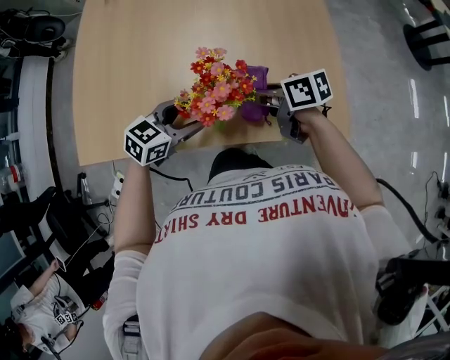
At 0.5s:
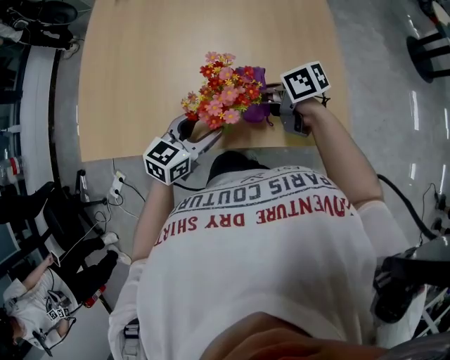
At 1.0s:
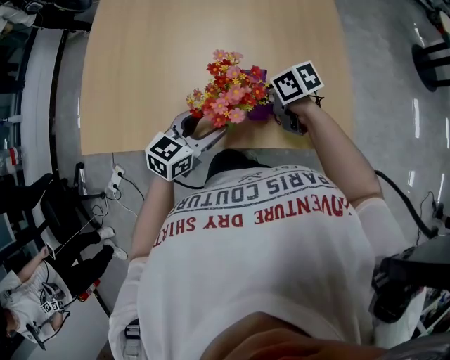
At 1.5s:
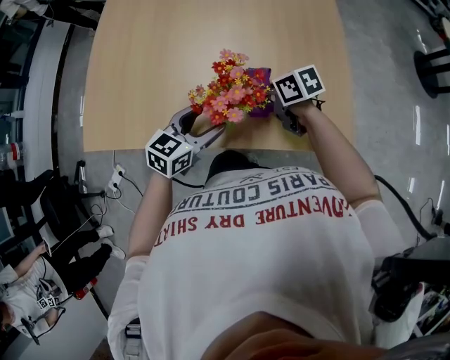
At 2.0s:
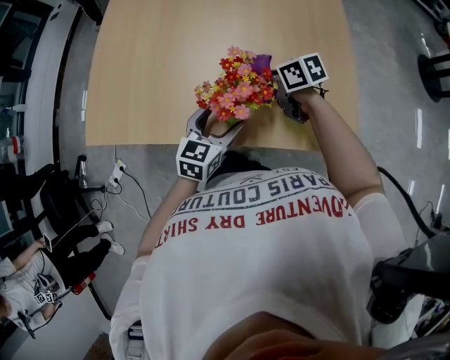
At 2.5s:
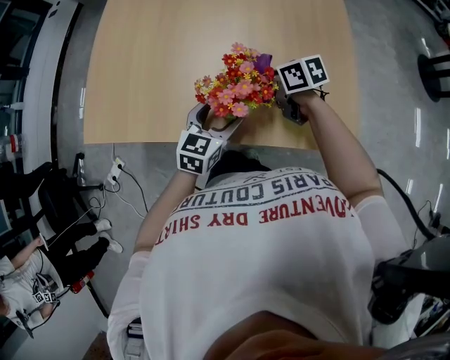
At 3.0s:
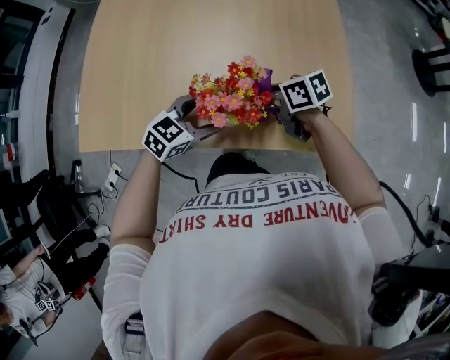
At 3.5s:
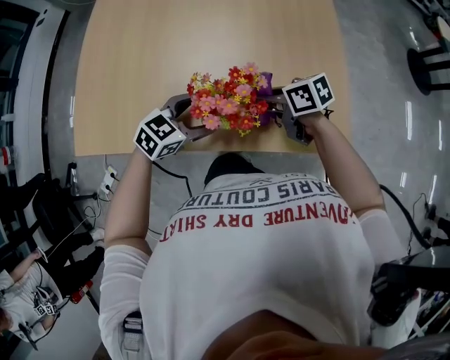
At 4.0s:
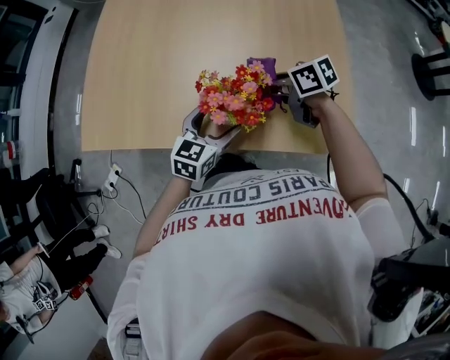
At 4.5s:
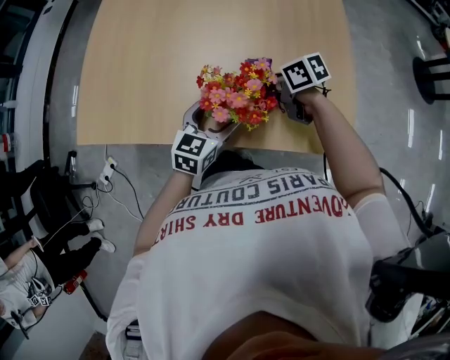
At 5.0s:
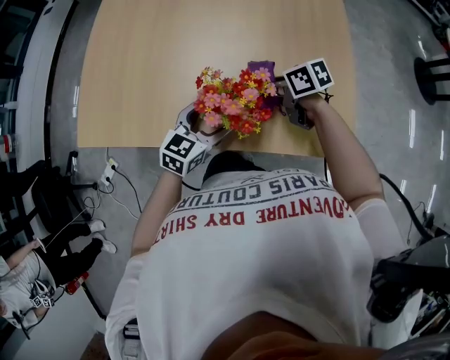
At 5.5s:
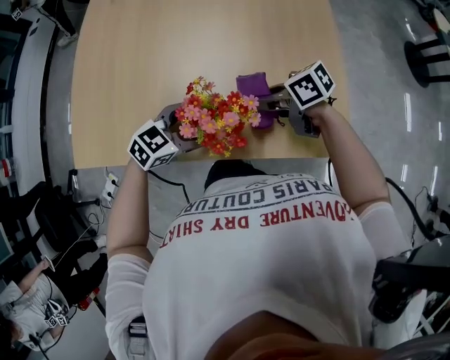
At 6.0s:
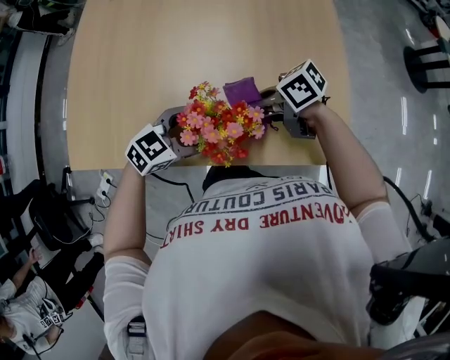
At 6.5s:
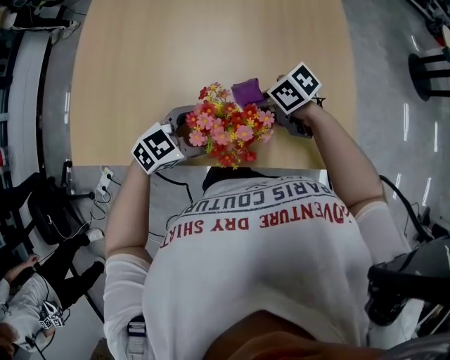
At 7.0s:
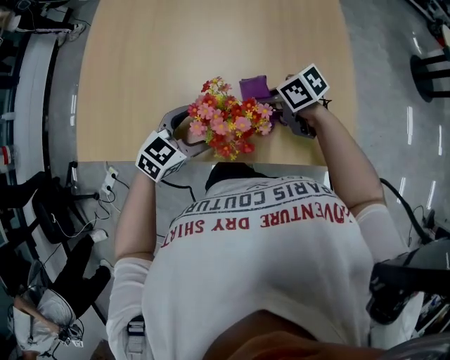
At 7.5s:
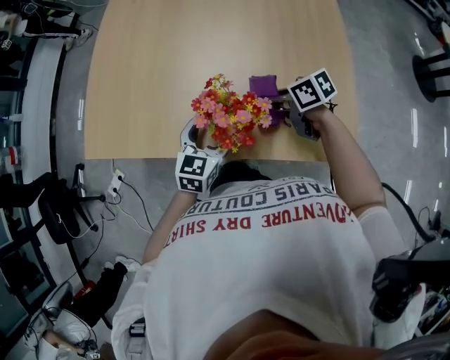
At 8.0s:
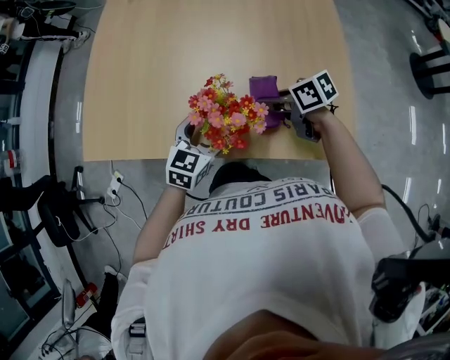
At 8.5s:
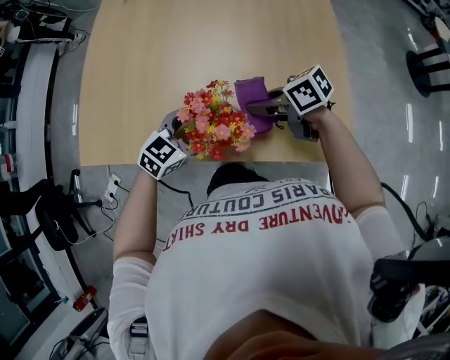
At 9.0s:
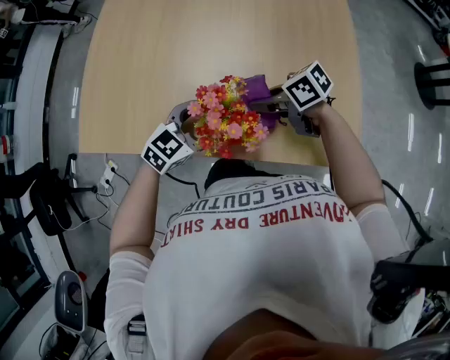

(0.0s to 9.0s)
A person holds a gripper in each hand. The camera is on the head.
0.0s - 2.0s: The right gripper changes place by some 5 cm; the left gripper swivels approximately 30 degrees.
4.5s - 7.0s: The left gripper ends up about 5 cm from where it was, and turns by some 30 degrees.

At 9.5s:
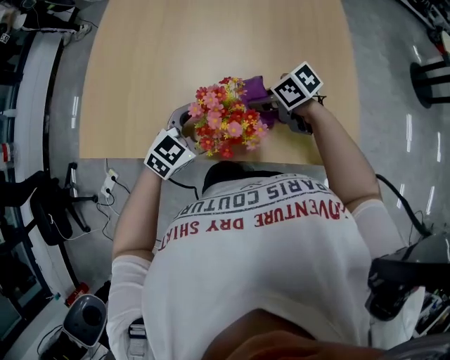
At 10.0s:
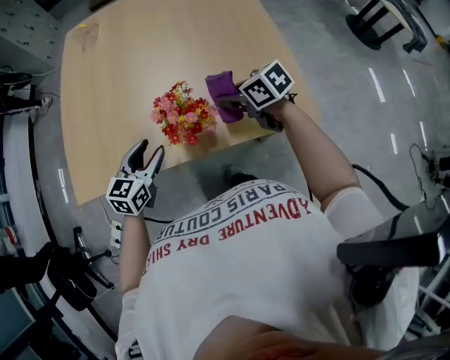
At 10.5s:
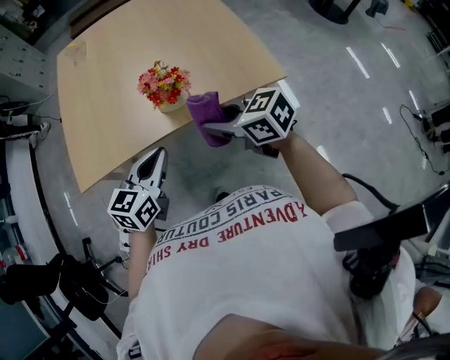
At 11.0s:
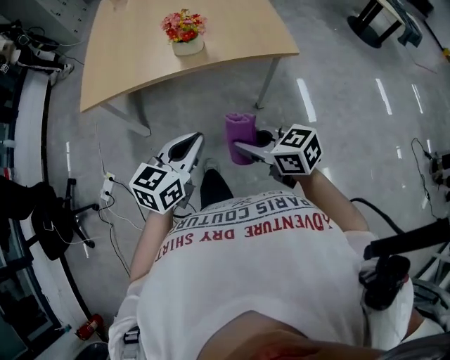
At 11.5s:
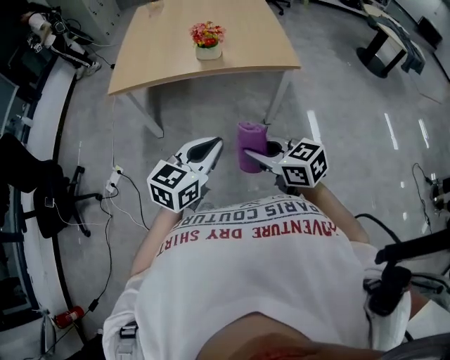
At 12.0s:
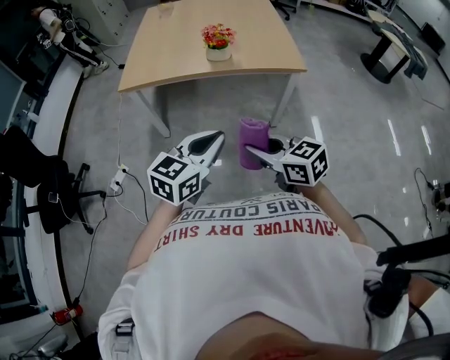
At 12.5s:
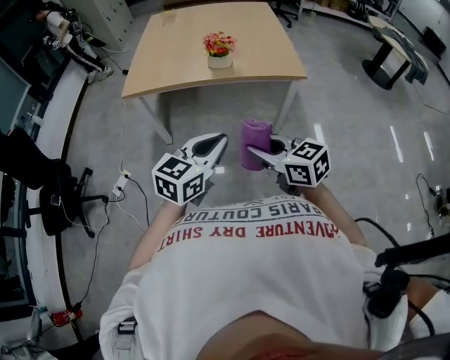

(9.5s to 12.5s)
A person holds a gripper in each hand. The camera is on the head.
9.5s - 11.0s: Both grippers are carried about 70 cm. The left gripper turns by some 20 degrees, and closes its fingers; the right gripper swivels approximately 40 degrees.
11.0s - 12.5s: The left gripper travels backward and upward by roughly 20 cm, while the right gripper goes approximately 20 cm backward, upward and to the left.

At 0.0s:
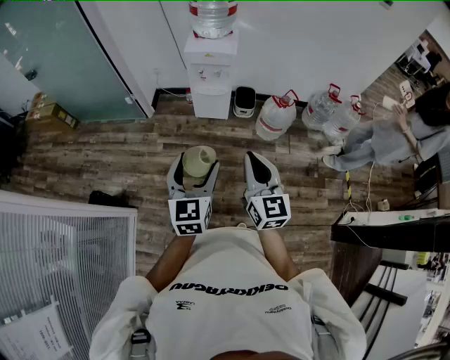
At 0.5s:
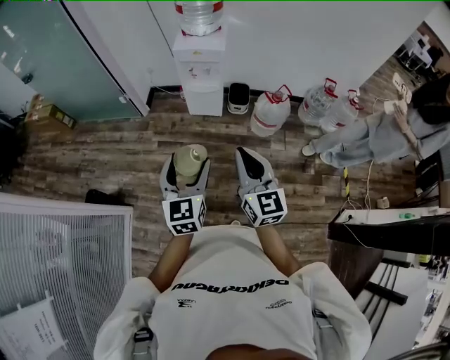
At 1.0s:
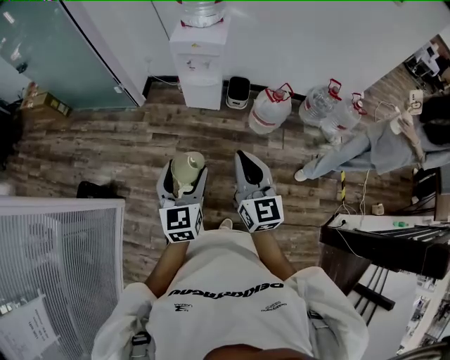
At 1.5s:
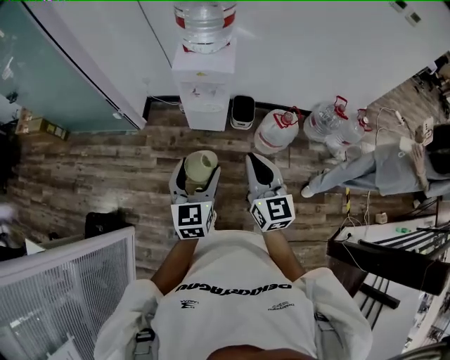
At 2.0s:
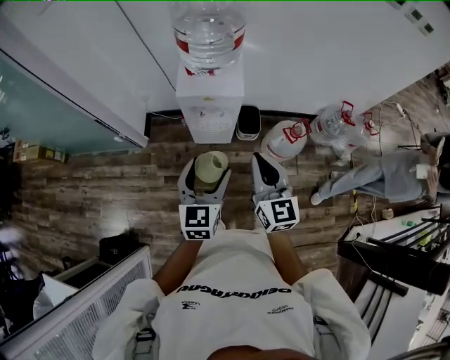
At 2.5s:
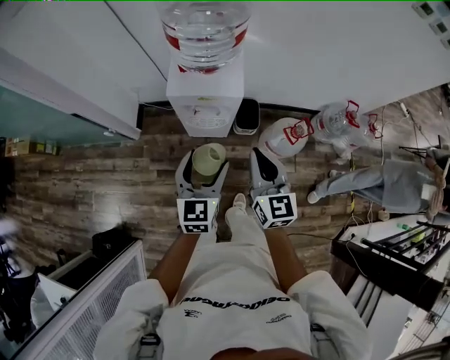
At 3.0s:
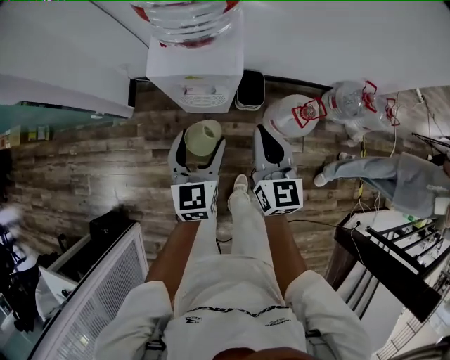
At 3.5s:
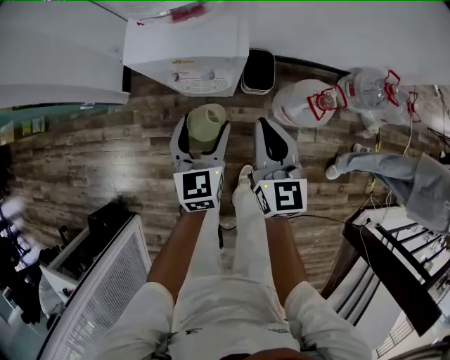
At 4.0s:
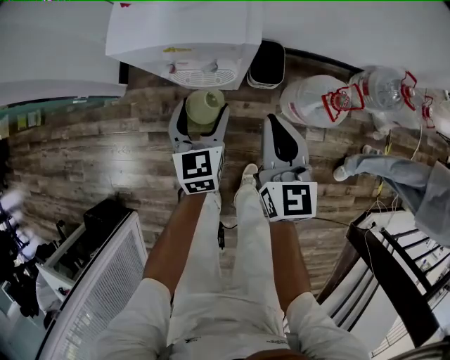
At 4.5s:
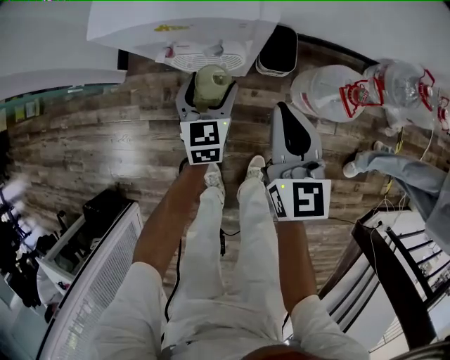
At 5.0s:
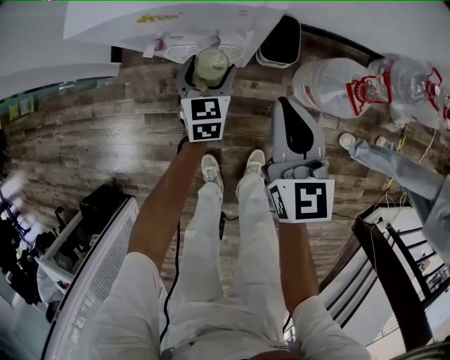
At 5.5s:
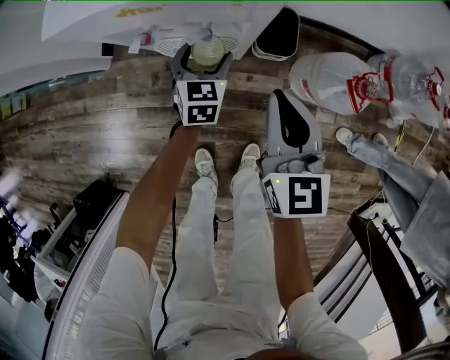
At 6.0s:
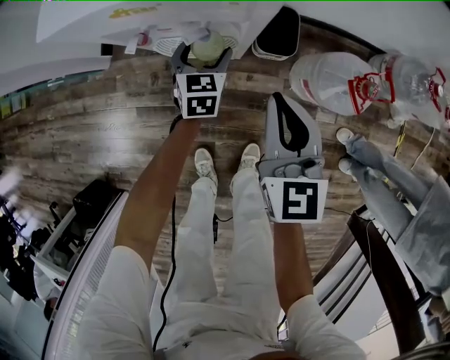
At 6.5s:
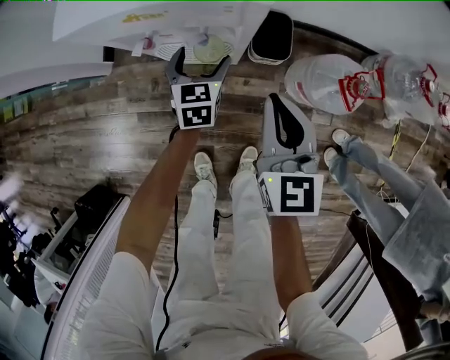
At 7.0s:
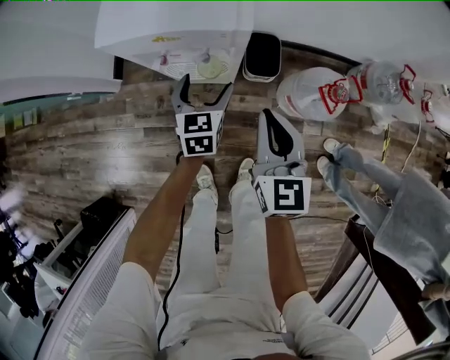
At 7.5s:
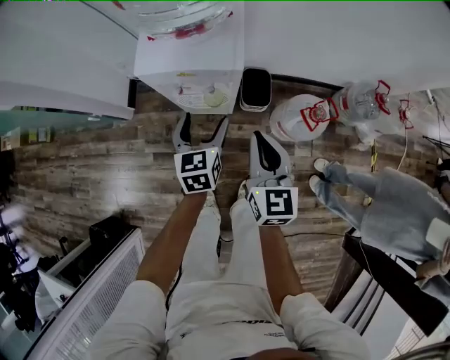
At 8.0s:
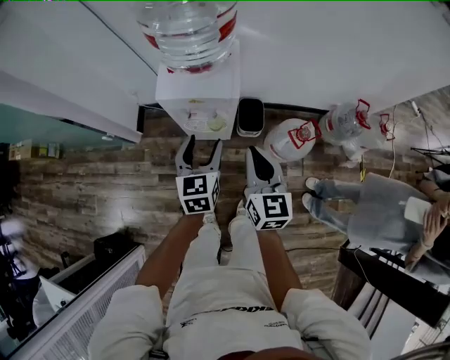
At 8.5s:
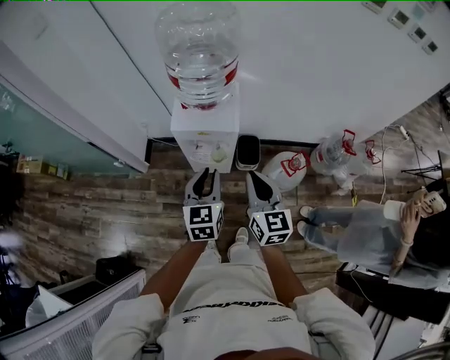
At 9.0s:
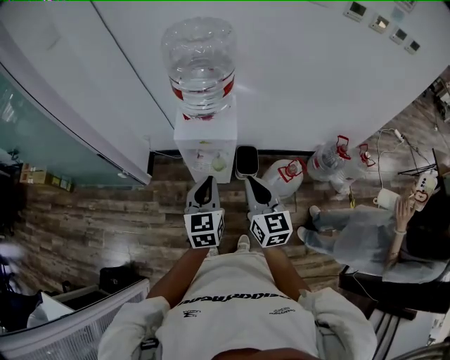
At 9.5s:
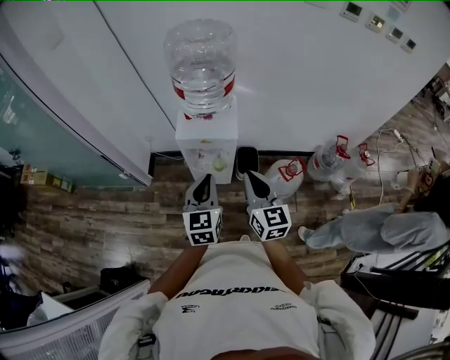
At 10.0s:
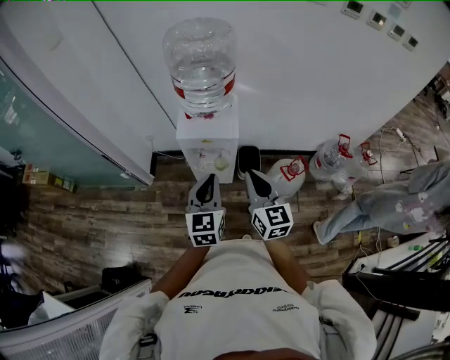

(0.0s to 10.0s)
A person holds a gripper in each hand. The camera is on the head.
0.0s - 2.0s: The pair of grippers is taken forward, roughly 40 cm.
2.0s - 4.0s: The two grippers go some 40 cm downward and forward.
4.0s - 6.0s: The right gripper goes about 10 cm downward; the left gripper is displaced downward and forward by about 25 cm.
6.0s - 8.0s: Both grippers move upward, approximately 40 cm.
8.0s - 10.0s: Both grippers move upward and backward, some 20 cm. The left gripper closes its fingers.

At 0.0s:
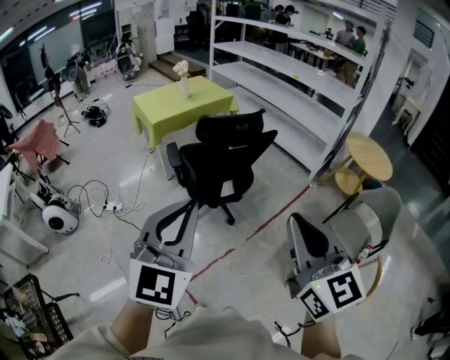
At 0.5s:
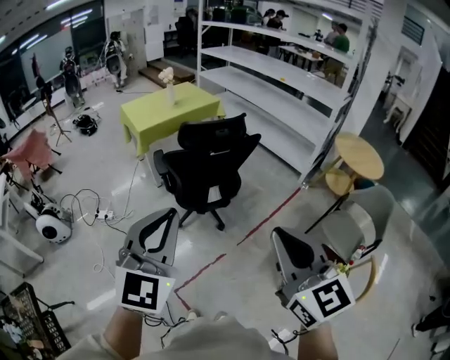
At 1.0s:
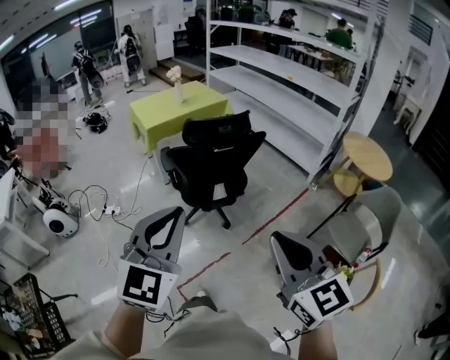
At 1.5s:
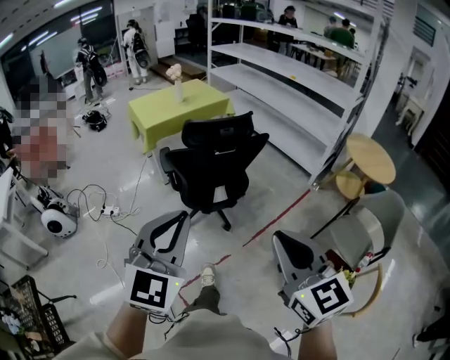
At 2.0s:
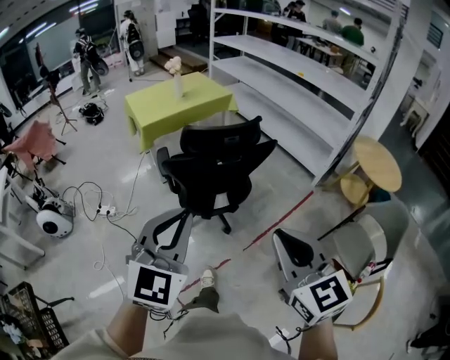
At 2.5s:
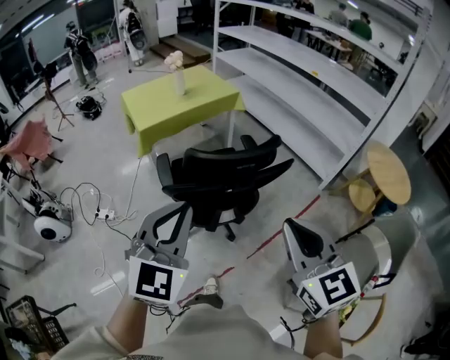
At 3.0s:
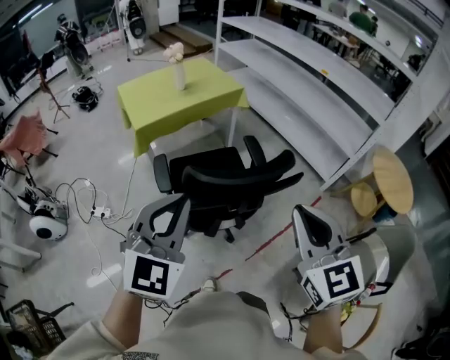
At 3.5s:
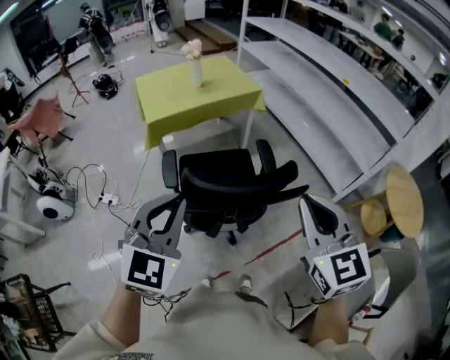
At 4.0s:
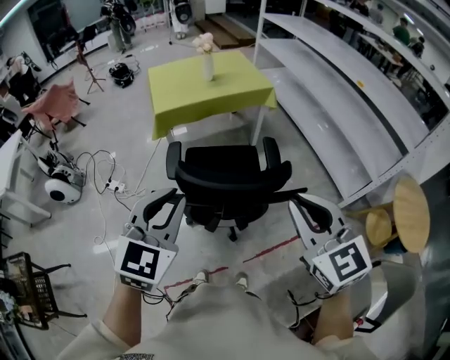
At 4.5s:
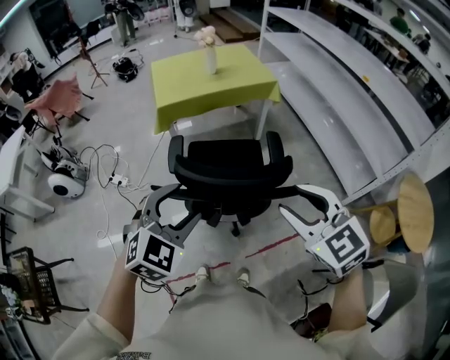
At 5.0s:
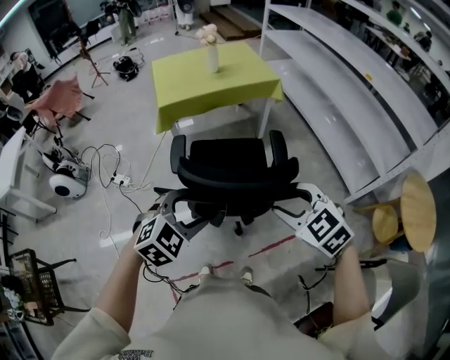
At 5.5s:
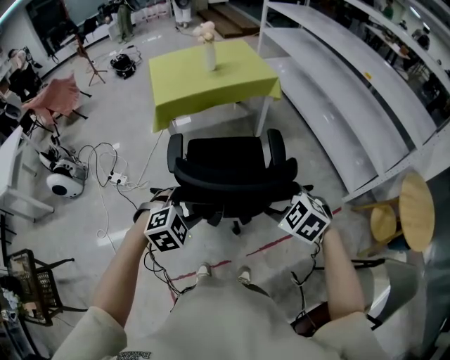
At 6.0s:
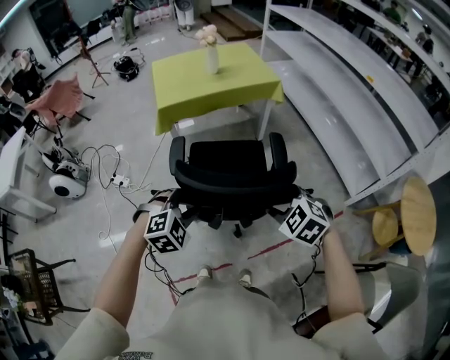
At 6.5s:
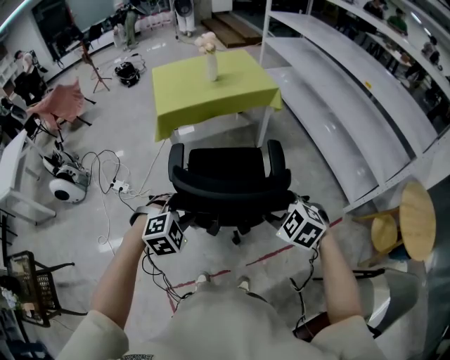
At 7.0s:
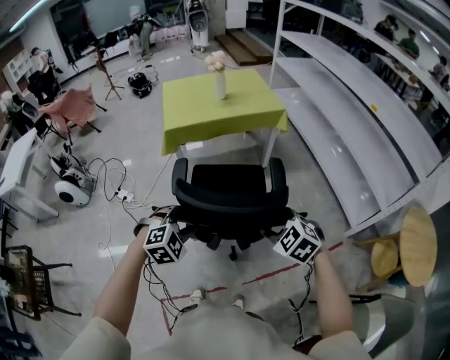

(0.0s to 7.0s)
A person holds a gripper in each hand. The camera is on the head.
0.0s - 2.0s: The two grippers go roughly 15 cm forward and downward.
2.0s - 3.5s: The grippers both shift forward by about 30 cm.
3.5s - 5.0s: The grippers both shift downward by roughly 15 cm. The left gripper turns by some 30 degrees, and opens. Meanwhile the right gripper turns by about 40 degrees, and opens its fingers.
5.0s - 7.0s: The two grippers go roughly 10 cm downward and forward.
